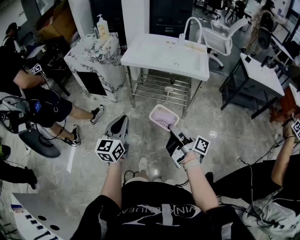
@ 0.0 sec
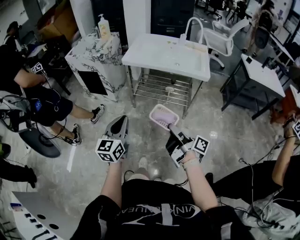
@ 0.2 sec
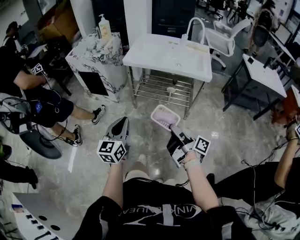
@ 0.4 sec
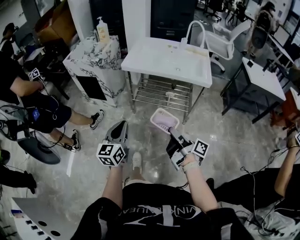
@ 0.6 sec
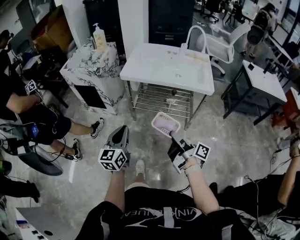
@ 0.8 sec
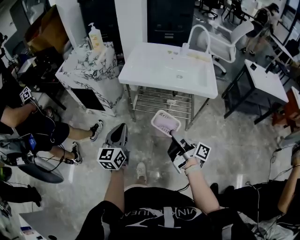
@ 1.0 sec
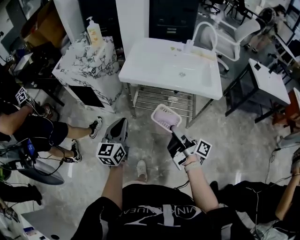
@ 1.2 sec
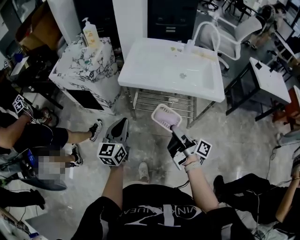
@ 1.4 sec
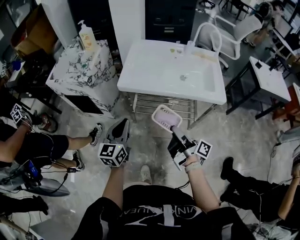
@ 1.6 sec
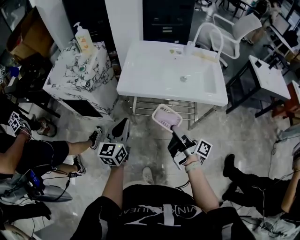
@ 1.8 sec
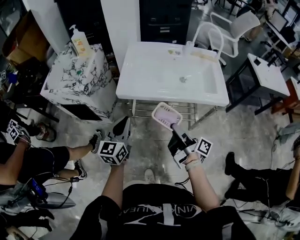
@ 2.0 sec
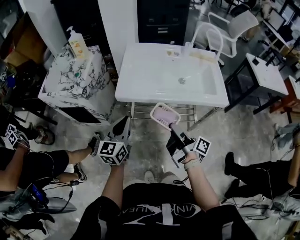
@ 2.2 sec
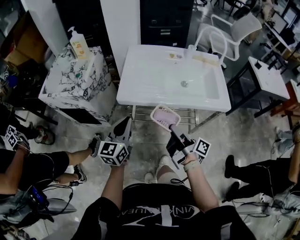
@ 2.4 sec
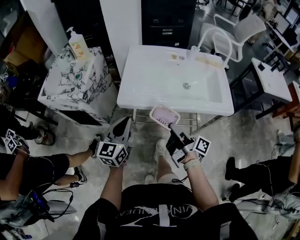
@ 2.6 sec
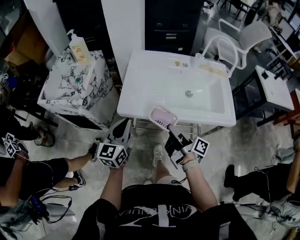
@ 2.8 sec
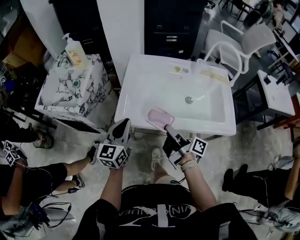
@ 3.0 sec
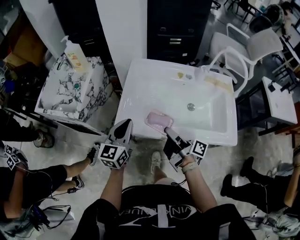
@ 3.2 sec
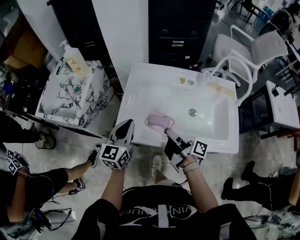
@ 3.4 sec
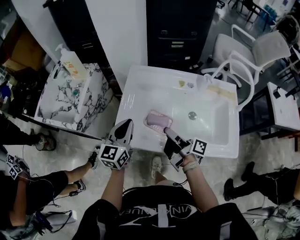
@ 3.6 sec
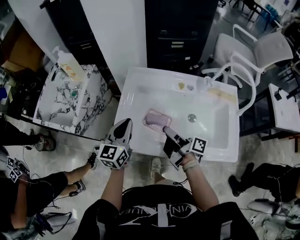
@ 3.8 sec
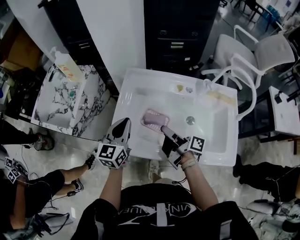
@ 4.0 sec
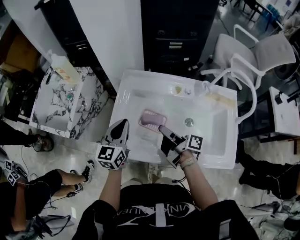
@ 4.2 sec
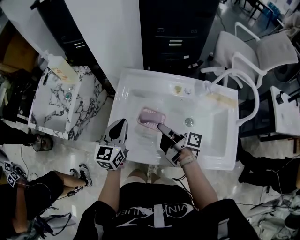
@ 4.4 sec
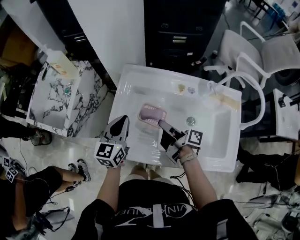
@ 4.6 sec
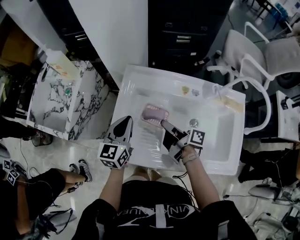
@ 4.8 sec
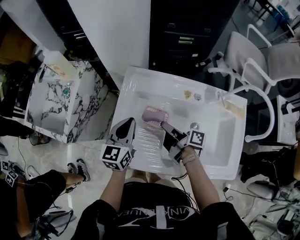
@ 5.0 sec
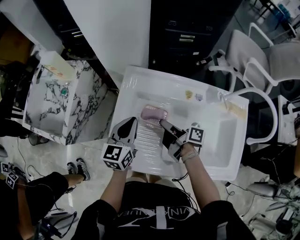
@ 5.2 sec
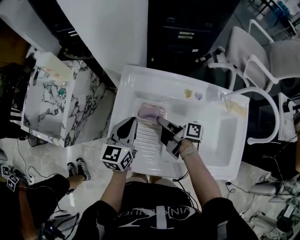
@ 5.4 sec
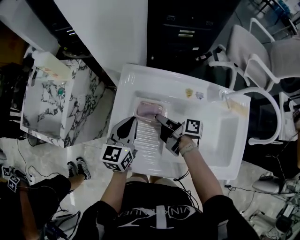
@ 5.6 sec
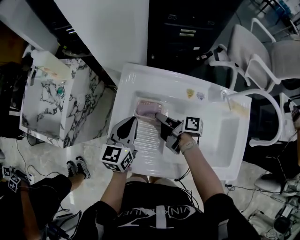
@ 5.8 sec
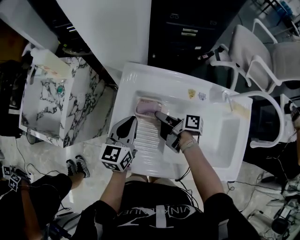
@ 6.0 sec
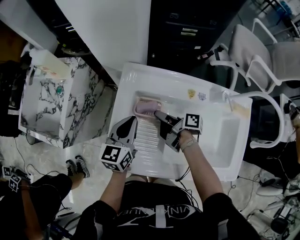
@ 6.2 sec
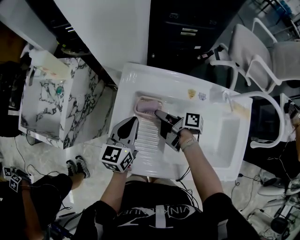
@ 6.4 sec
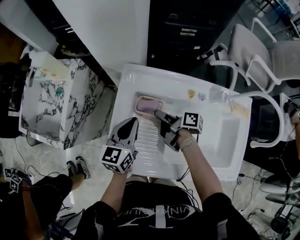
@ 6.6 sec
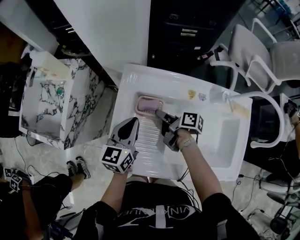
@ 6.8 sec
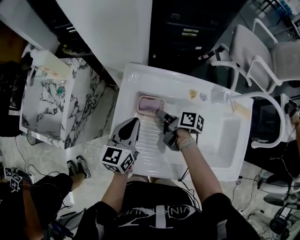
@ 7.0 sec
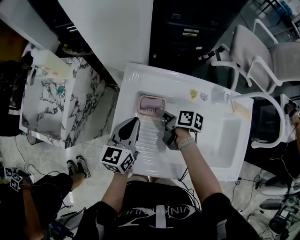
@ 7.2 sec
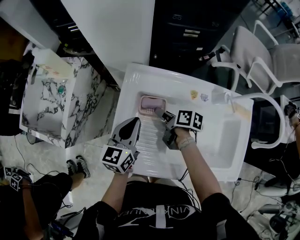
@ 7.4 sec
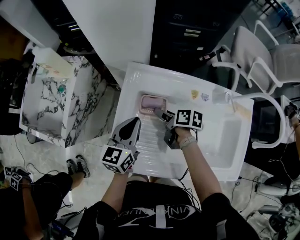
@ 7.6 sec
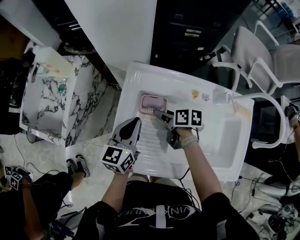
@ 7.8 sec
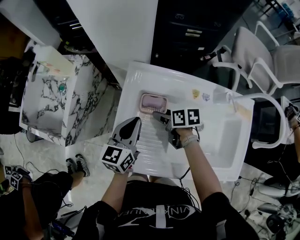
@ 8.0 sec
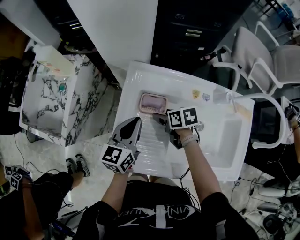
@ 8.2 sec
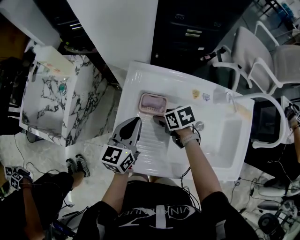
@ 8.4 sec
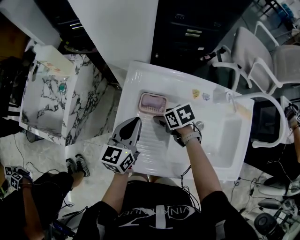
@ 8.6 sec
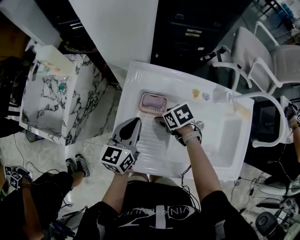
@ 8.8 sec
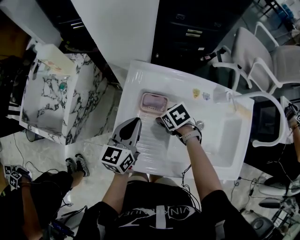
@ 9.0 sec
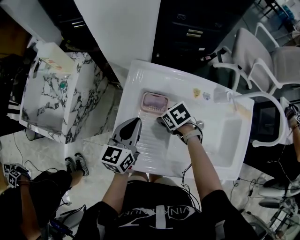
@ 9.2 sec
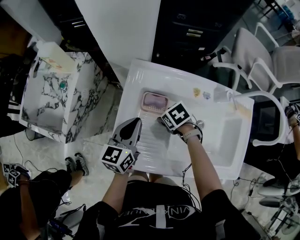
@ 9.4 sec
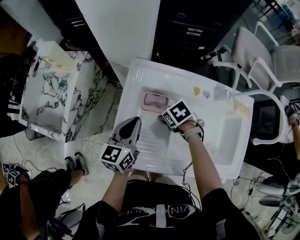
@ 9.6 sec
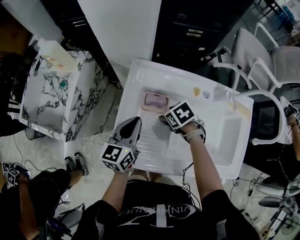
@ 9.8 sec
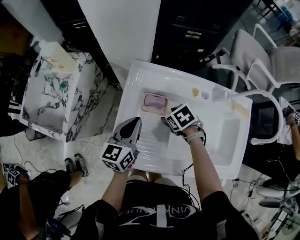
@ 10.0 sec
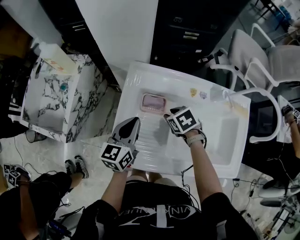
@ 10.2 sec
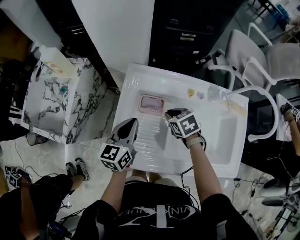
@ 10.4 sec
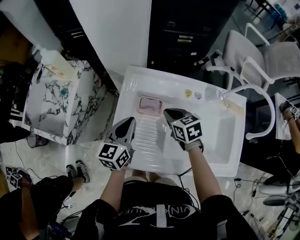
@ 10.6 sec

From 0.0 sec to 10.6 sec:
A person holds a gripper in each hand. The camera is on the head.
From 0.0 sec to 1.6 sec: The left gripper moves approximately 30 cm.
From 1.6 sec to 3.0 sec: The left gripper changes place by roughly 20 cm.
From 3.0 sec to 4.6 sec: The left gripper changes place by roughly 20 cm.
From 4.6 sec to 6.0 sec: The left gripper moves about 5 cm.

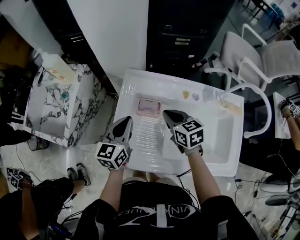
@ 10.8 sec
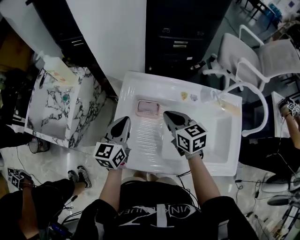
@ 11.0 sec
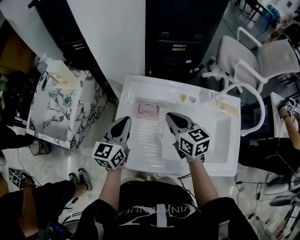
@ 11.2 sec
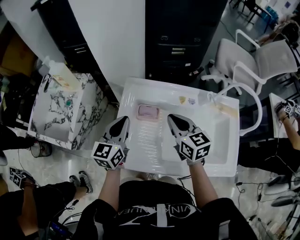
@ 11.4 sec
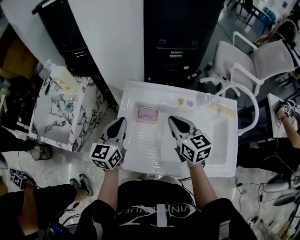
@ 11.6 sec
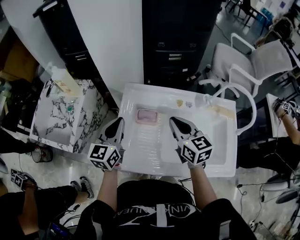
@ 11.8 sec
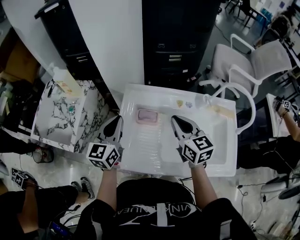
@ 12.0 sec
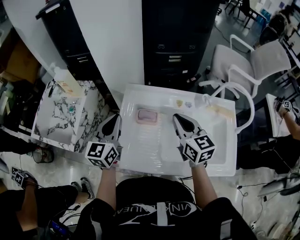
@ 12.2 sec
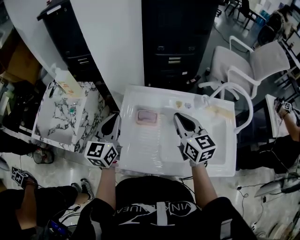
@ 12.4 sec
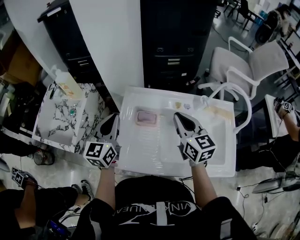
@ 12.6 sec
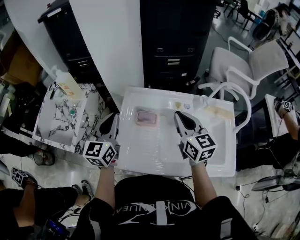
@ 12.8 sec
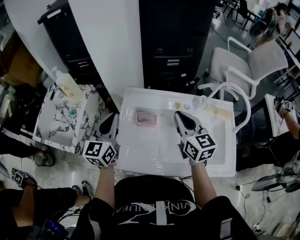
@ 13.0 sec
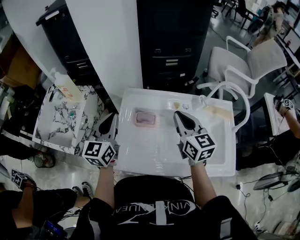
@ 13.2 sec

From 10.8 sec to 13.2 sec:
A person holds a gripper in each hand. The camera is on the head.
From 10.8 sec to 12.0 sec: The left gripper goes roughly 10 cm upward.

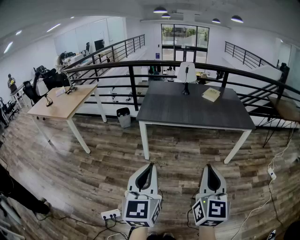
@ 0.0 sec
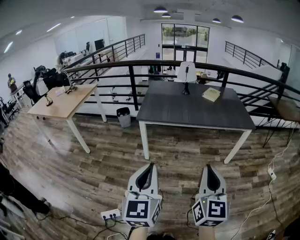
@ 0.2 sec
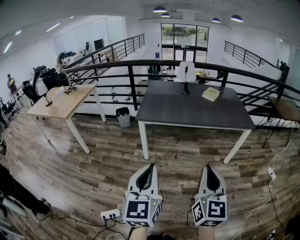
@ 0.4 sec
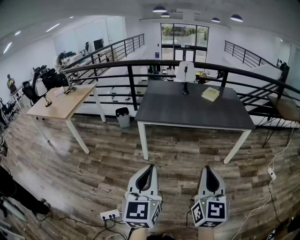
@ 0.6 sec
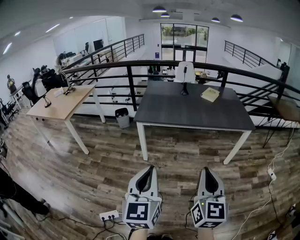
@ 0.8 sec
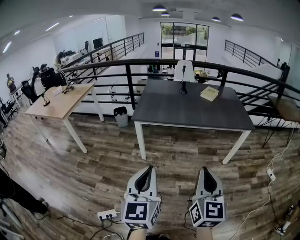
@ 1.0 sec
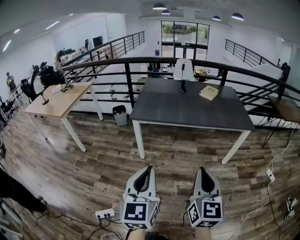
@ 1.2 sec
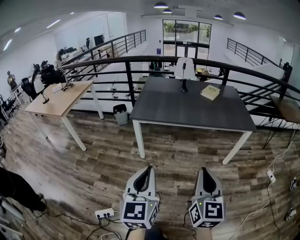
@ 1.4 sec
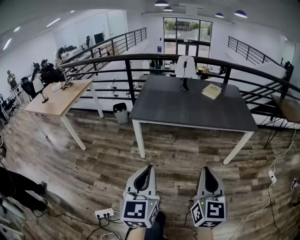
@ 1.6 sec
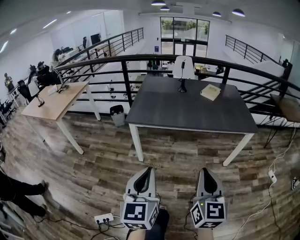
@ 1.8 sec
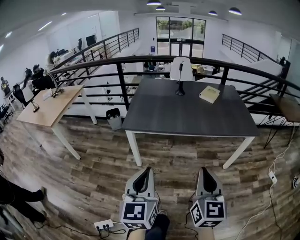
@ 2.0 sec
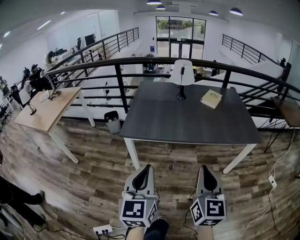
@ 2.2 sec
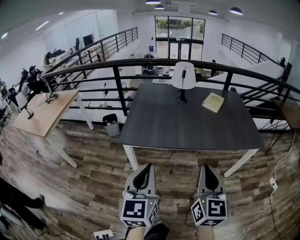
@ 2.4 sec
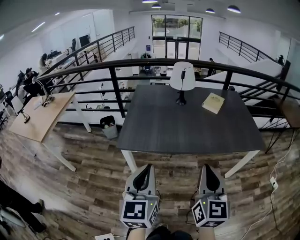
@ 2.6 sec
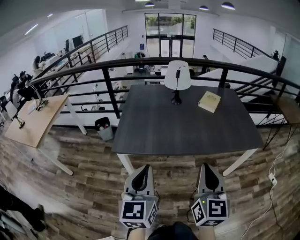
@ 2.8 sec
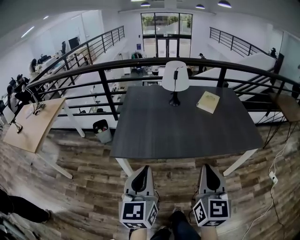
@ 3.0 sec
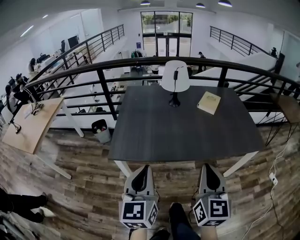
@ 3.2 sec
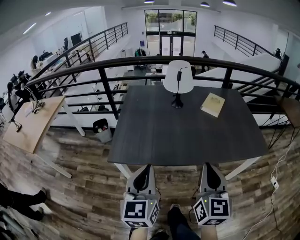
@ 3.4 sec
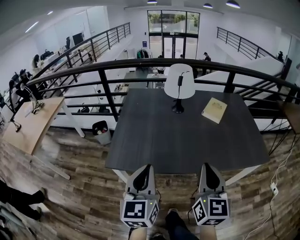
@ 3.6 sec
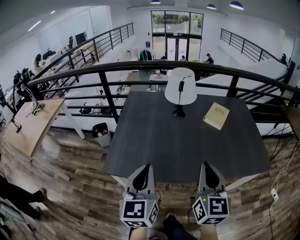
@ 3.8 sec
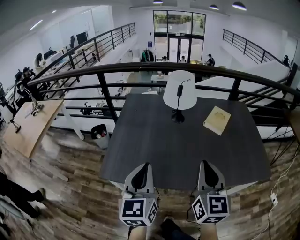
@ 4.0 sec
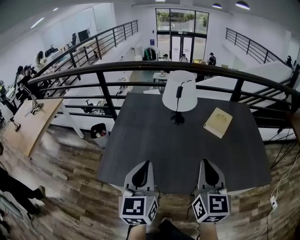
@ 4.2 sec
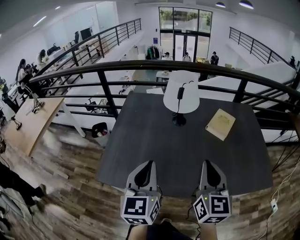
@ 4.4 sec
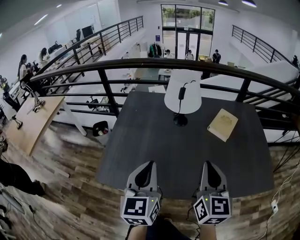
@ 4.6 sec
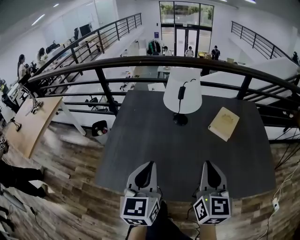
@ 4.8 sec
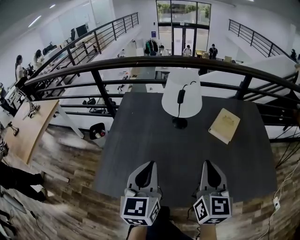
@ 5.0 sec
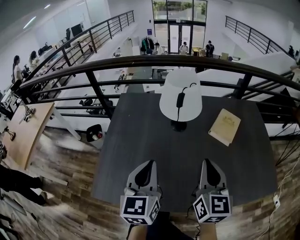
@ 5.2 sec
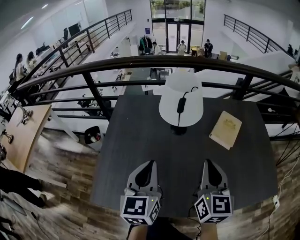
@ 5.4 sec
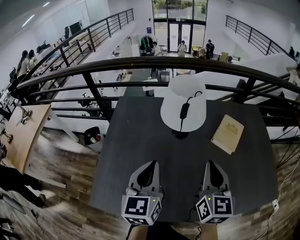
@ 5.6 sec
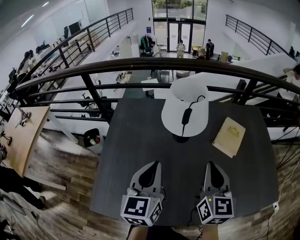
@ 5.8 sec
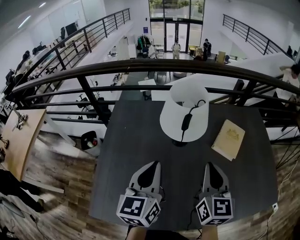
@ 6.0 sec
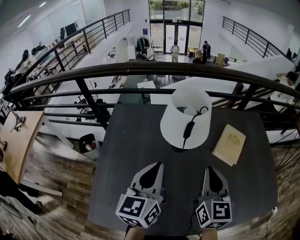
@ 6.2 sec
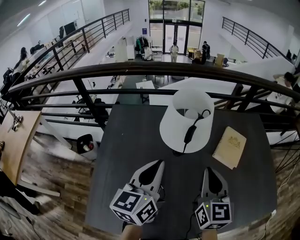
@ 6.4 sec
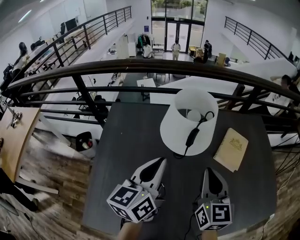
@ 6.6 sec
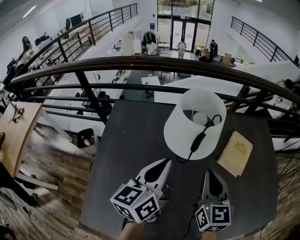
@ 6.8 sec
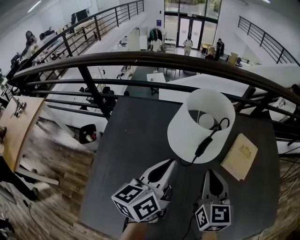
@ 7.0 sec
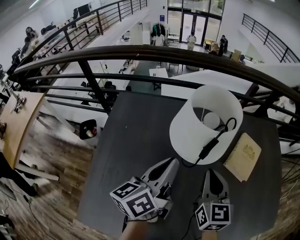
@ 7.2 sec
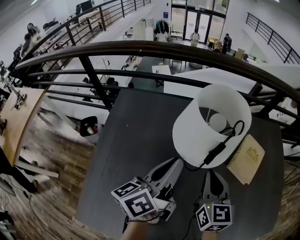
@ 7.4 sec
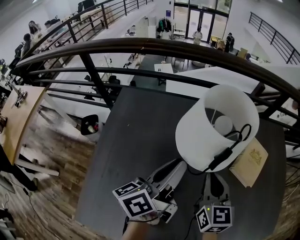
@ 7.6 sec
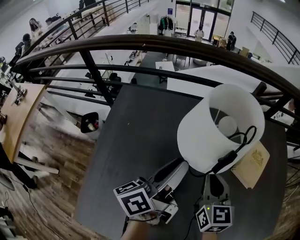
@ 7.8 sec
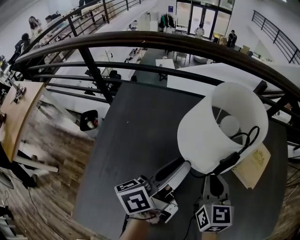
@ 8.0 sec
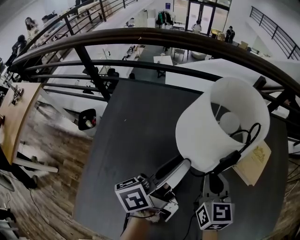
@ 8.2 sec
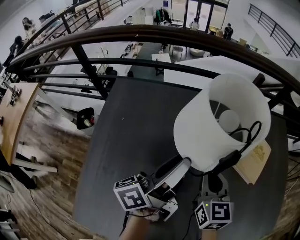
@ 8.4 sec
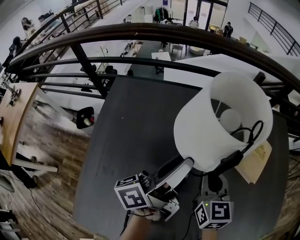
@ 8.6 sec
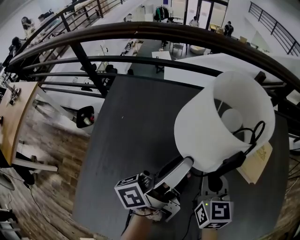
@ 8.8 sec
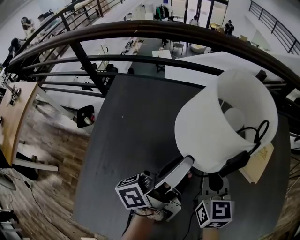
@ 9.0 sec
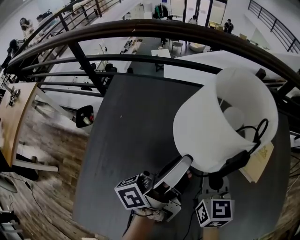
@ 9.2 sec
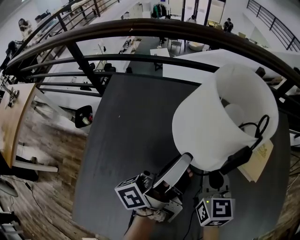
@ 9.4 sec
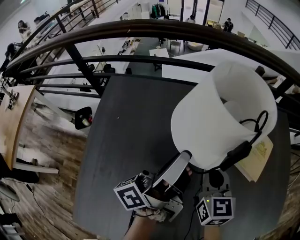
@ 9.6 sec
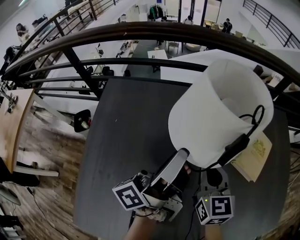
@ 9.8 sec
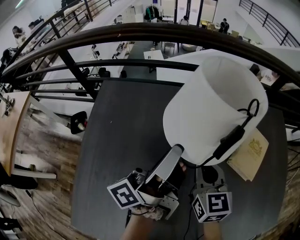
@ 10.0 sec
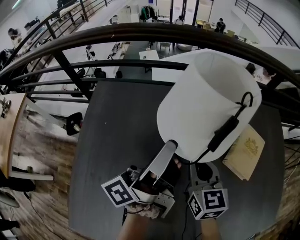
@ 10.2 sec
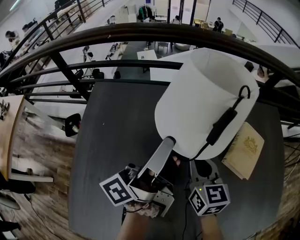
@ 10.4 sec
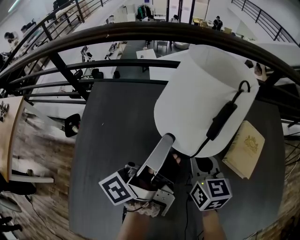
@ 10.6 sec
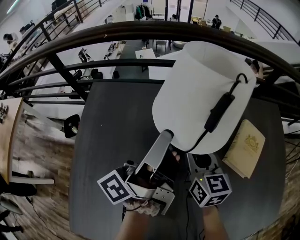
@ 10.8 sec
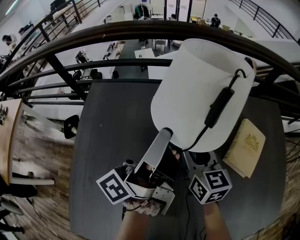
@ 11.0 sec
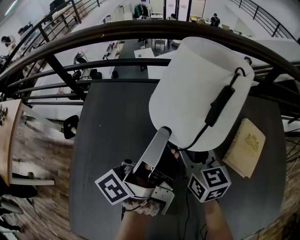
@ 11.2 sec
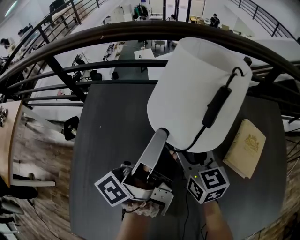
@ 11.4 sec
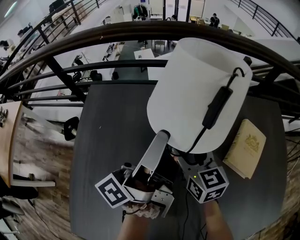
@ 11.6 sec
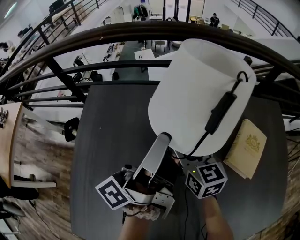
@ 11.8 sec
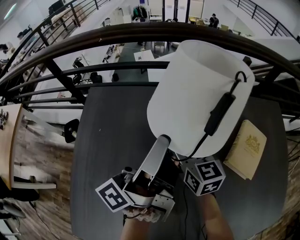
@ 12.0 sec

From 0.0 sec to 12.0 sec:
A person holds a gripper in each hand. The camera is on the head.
From 0.0 sec to 1.6 sec: The grippers both shift forward by about 10 cm.
From 1.6 sec to 3.0 sec: Both grippers move forward, some 35 cm.
From 3.0 sec to 4.4 sec: The two grippers go some 25 cm forward.
From 4.4 sec to 6.0 sec: The grippers both shift forward by some 20 cm.
From 6.0 sec to 7.6 sec: The left gripper travels forward and downward by approximately 15 cm, and rotates around the line of its fingers by some 40 degrees, counterclockwise from behind. The right gripper travels downward, forward and to the left by roughly 20 cm.
From 7.6 sec to 9.0 sec: The left gripper changes its angle by about 30 degrees.
From 9.0 sec to 10.4 sec: The left gripper ends up some 5 cm from where it was.
From 10.4 sec to 12.0 sec: The right gripper moves forward, roughly 5 cm, and opens.
